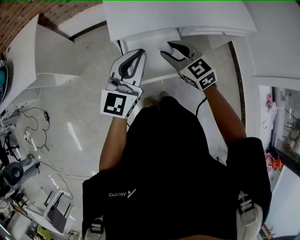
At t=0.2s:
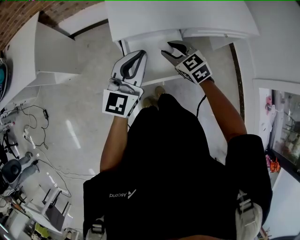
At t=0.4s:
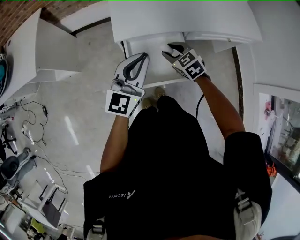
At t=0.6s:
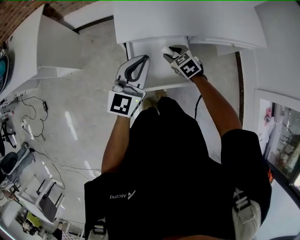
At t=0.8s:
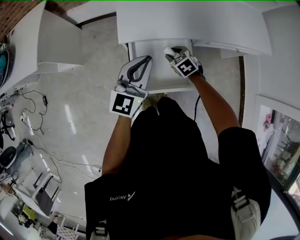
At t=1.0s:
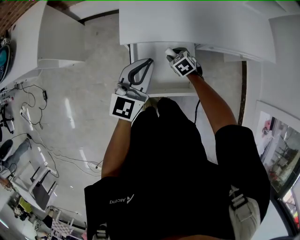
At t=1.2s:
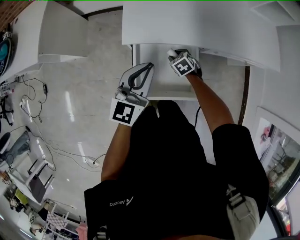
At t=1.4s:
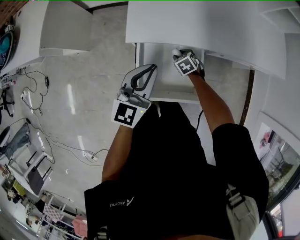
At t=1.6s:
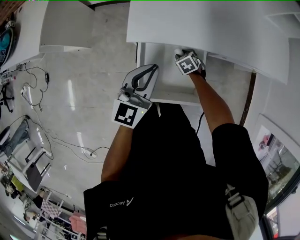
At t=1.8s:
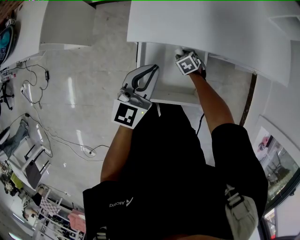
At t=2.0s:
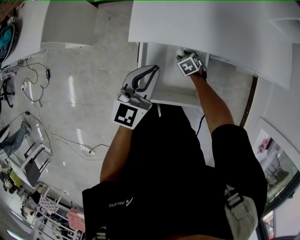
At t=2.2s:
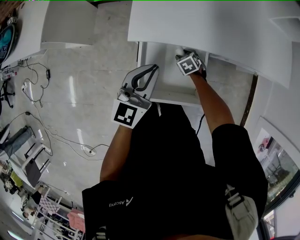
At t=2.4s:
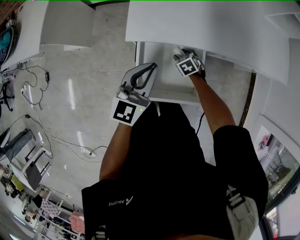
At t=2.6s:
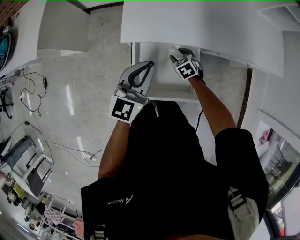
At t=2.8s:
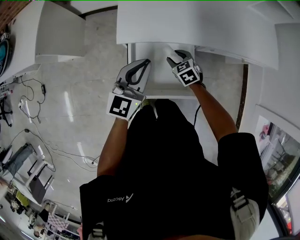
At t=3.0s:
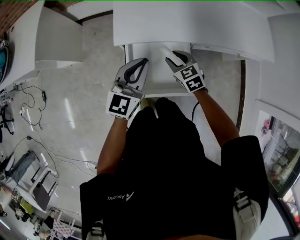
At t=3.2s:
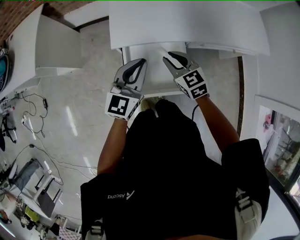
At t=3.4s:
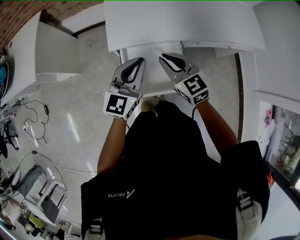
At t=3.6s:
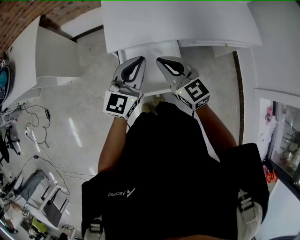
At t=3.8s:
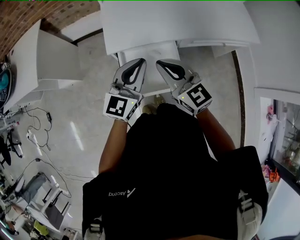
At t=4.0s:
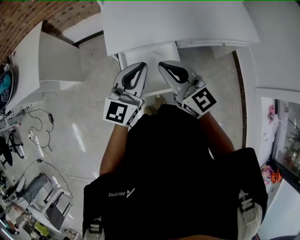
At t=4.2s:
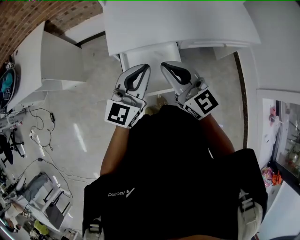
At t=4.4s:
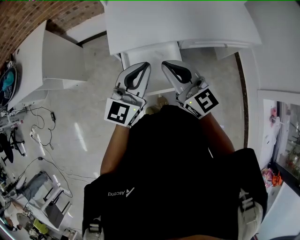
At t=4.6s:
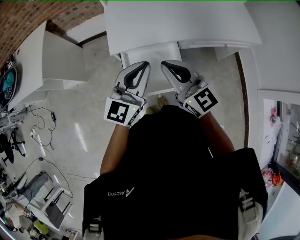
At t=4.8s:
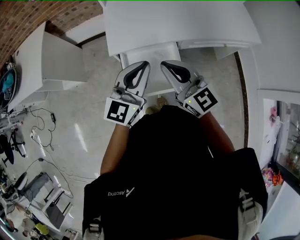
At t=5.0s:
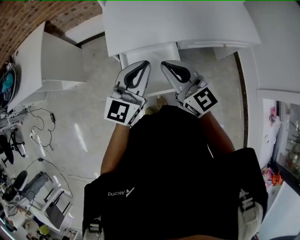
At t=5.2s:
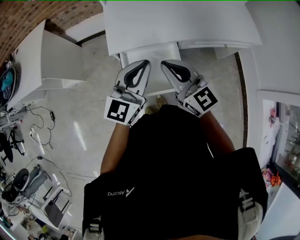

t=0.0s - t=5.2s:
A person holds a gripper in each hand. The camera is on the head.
t=0.0s - t=1.8s: The left gripper moves downward and forward, approximately 15 cm. The right gripper moves downward and forward, roughly 40 cm, and angles its fingers downward, by about 40 degrees.
t=1.8s - t=3.4s: The left gripper moves upward, some 5 cm; the right gripper goes about 35 cm upward, tilts its fingers approximately 50 degrees upward, and closes.
t=3.4s - t=5.2s: The left gripper travels upward and to the right by some 10 cm. The right gripper shifts about 10 cm upward and backward, and turns by roughly 20 degrees.

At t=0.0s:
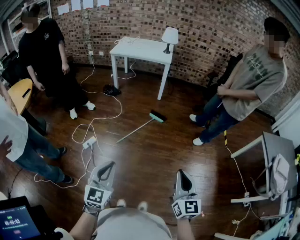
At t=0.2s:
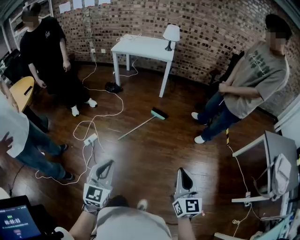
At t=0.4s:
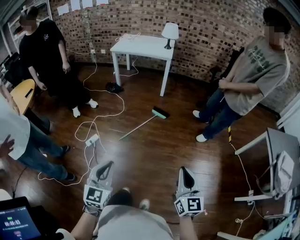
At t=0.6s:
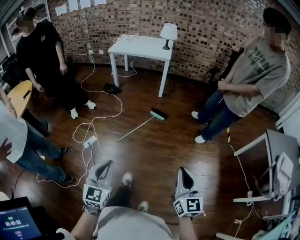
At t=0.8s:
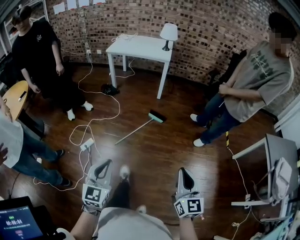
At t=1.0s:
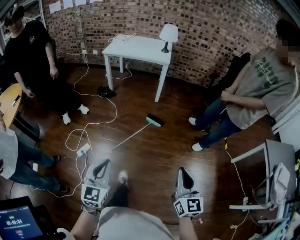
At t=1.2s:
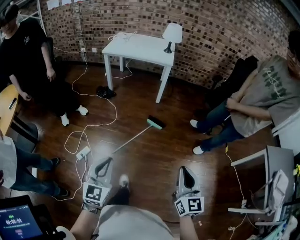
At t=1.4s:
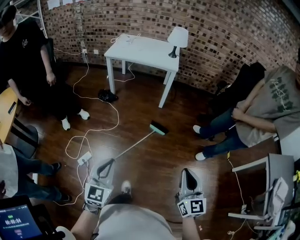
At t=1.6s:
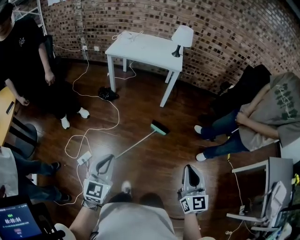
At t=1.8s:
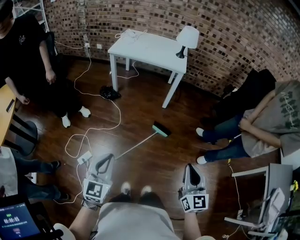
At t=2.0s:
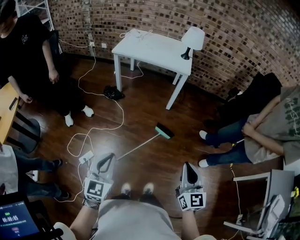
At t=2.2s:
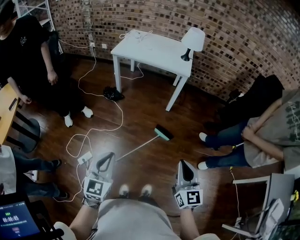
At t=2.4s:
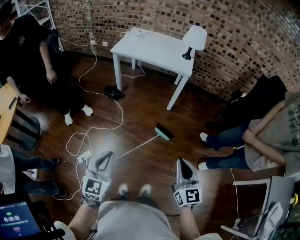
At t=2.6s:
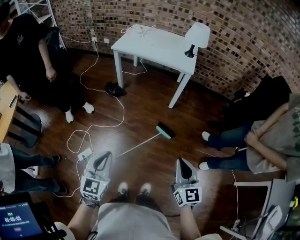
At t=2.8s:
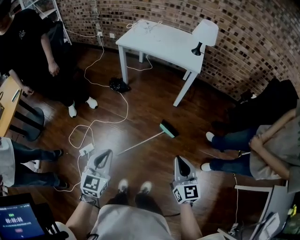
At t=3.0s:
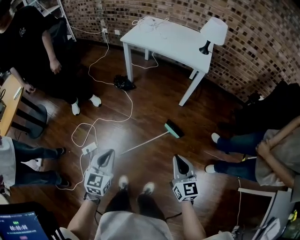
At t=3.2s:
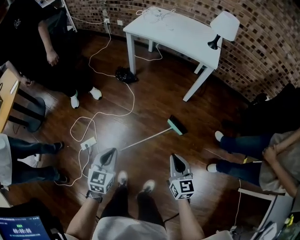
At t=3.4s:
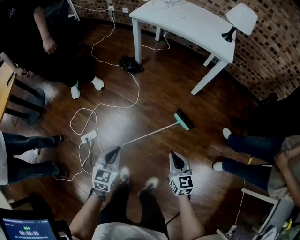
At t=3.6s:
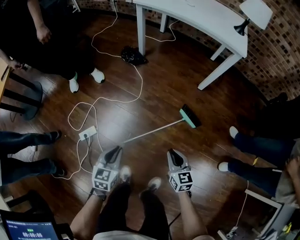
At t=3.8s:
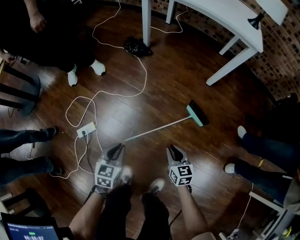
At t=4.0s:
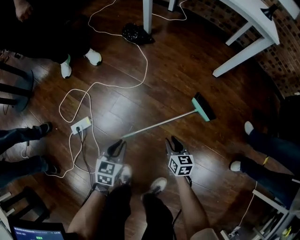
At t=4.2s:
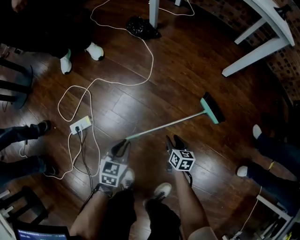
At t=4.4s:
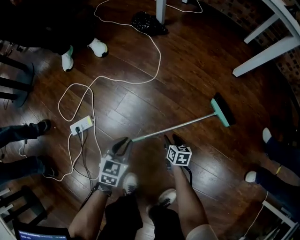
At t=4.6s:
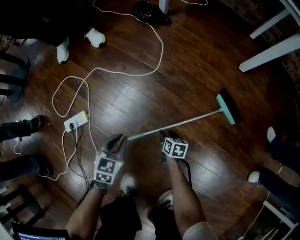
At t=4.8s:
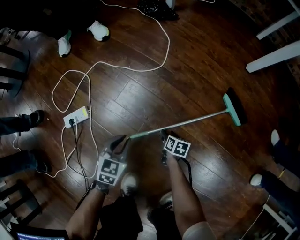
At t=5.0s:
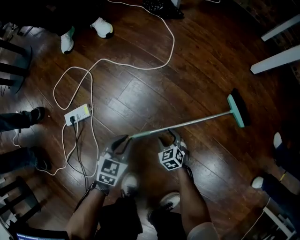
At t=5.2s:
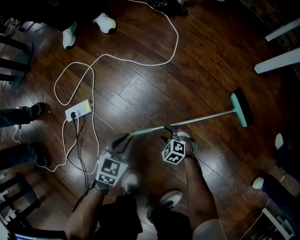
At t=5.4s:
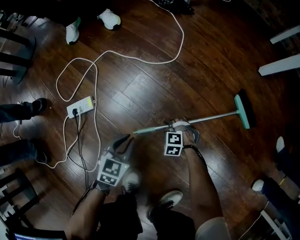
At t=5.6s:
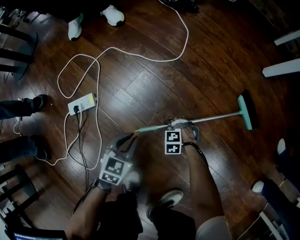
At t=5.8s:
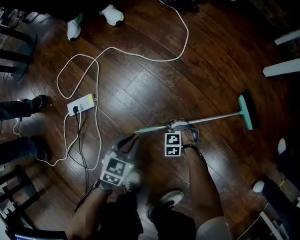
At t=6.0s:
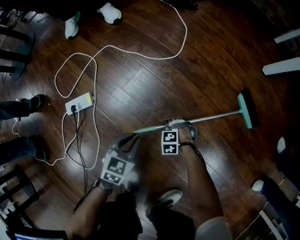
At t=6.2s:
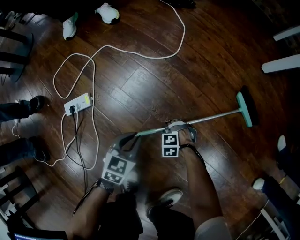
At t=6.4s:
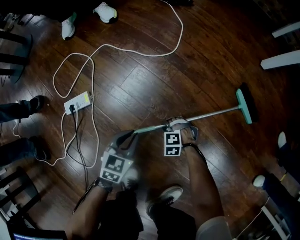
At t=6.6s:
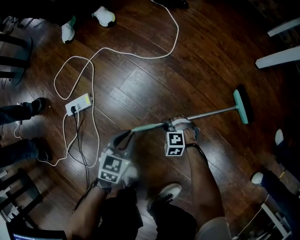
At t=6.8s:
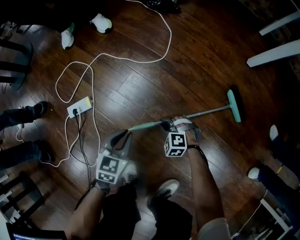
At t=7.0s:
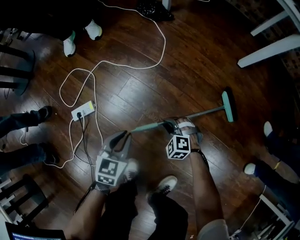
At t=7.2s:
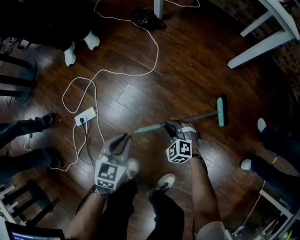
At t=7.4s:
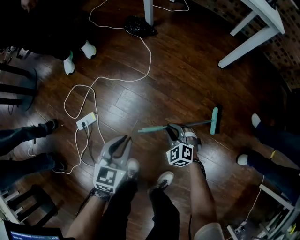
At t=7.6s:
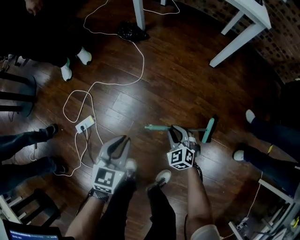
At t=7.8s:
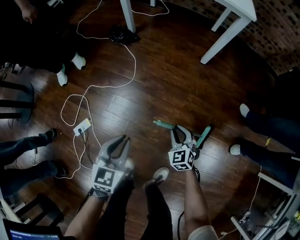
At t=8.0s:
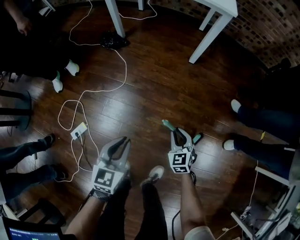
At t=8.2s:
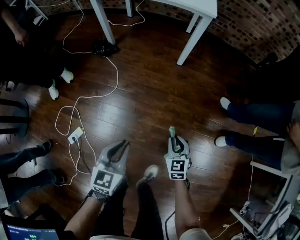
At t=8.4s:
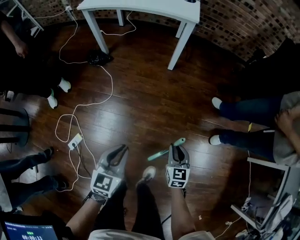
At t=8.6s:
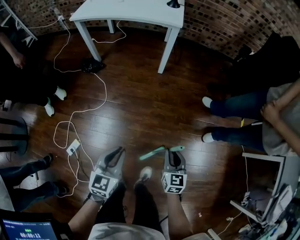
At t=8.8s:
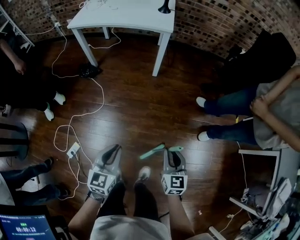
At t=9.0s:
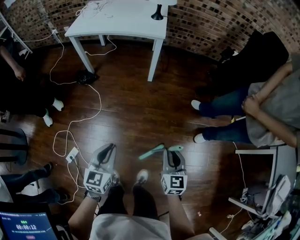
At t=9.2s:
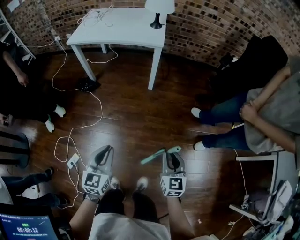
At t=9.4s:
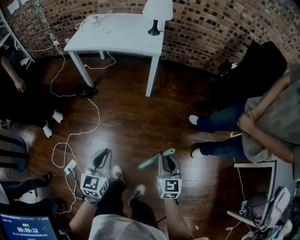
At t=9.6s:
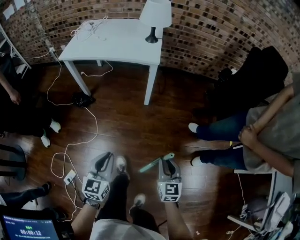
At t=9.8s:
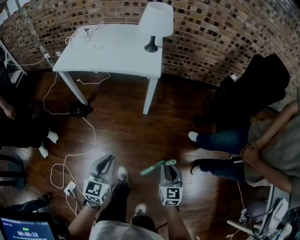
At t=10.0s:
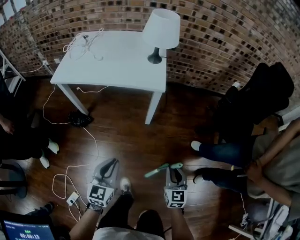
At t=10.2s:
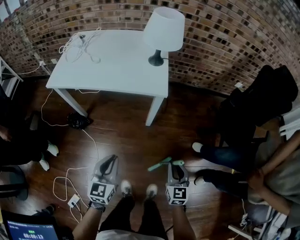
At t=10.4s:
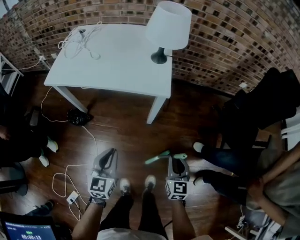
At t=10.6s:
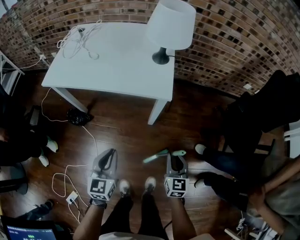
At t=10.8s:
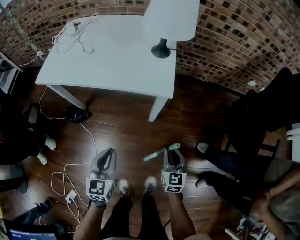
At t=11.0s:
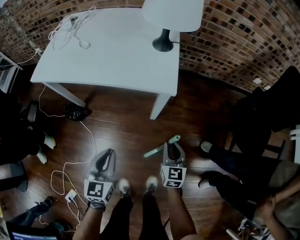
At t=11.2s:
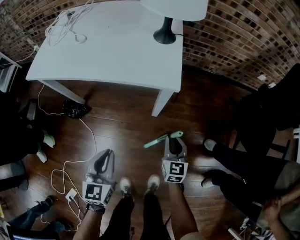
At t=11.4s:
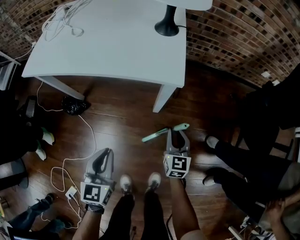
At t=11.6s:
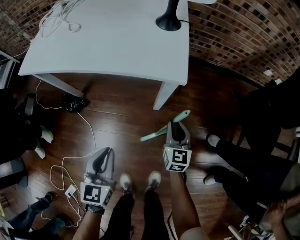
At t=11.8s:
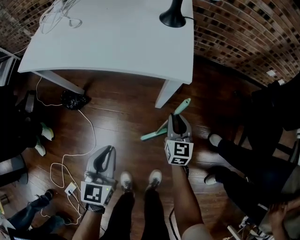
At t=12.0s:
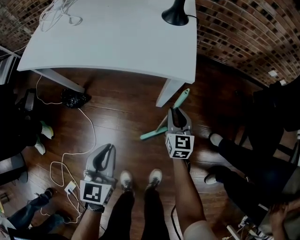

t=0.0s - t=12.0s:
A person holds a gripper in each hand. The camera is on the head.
t=0.0s - t=1.6s: The grippers both shift forward by about 35 cm.
t=1.6s - t=3.0s: Both grippers move forward and downward, some 20 cm. The left gripper changes its angle by roughly 20 degrees. The right gripper swivels about 20 degrees.
t=3.0s - t=4.4s: Both grippers travel together downward, some 70 cm. The left gripper swivels some 20 degrees. The right gripper angles its fingers downward, by about 40 degrees, and opens up.
t=4.4s - t=6.0s: Both grippers move downward, about 15 cm. The right gripper twists approximately 110 degrees counterclockwise, seen from behind.
t=6.0s - t=7.6s: The two grippers go approximately 40 cm upward. The right gripper points its fingers some 40 degrees further upward.
t=7.6s - t=9.0s: The left gripper moves upward, some 25 cm. Meanwhile the right gripper moves upward, about 40 cm, and rotates some 60 degrees.
t=9.0s - t=10.4s: The pair of grippers is taken forward, approximately 40 cm.
t=10.4s - t=12.0s: The left gripper heads downward and forward, covering some 15 cm; the right gripper travels forward and downward by about 30 cm.

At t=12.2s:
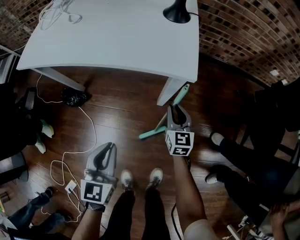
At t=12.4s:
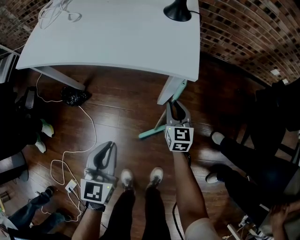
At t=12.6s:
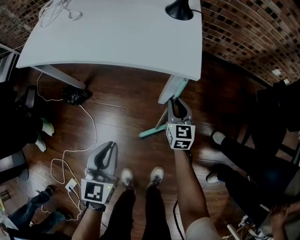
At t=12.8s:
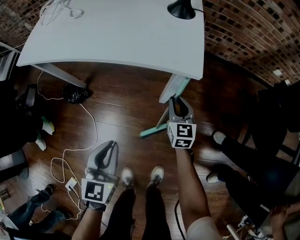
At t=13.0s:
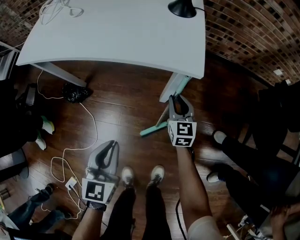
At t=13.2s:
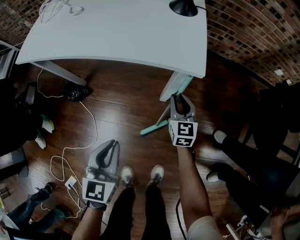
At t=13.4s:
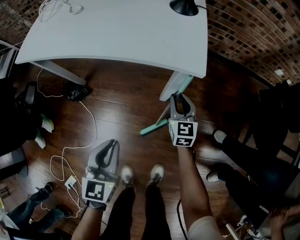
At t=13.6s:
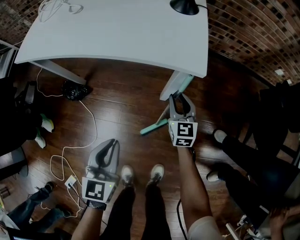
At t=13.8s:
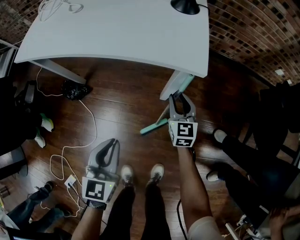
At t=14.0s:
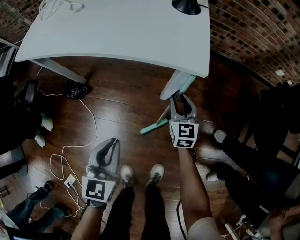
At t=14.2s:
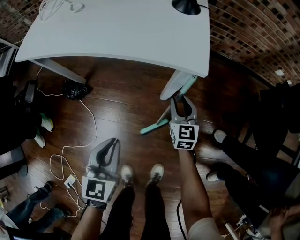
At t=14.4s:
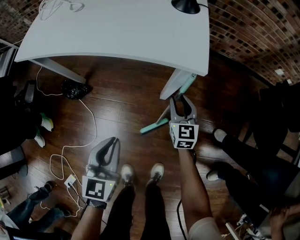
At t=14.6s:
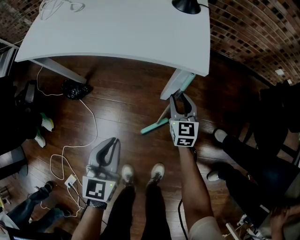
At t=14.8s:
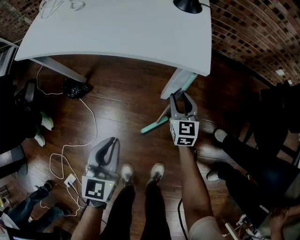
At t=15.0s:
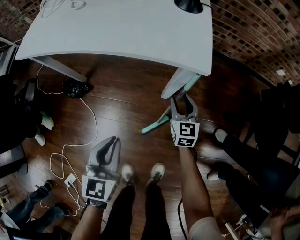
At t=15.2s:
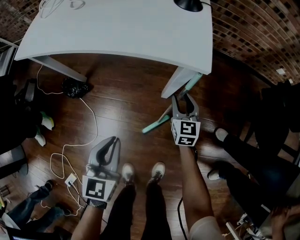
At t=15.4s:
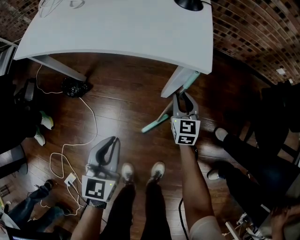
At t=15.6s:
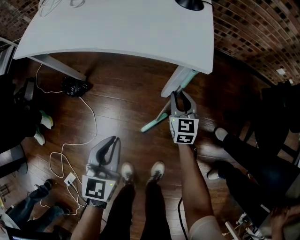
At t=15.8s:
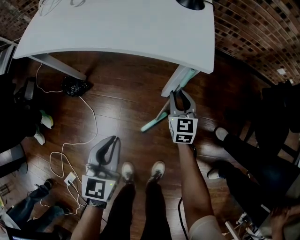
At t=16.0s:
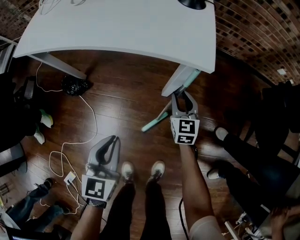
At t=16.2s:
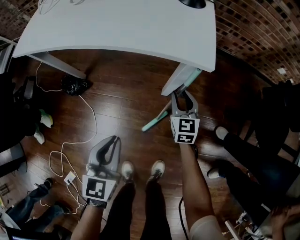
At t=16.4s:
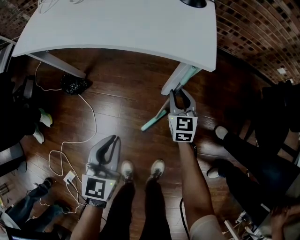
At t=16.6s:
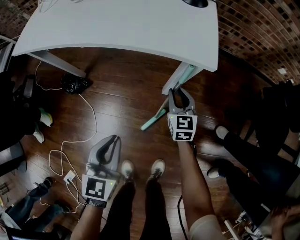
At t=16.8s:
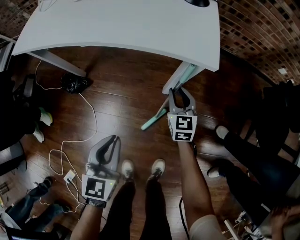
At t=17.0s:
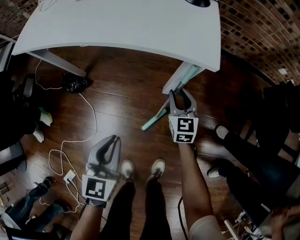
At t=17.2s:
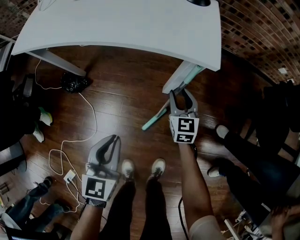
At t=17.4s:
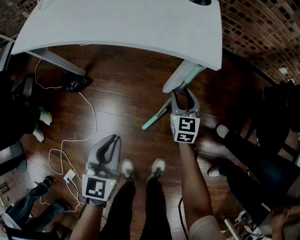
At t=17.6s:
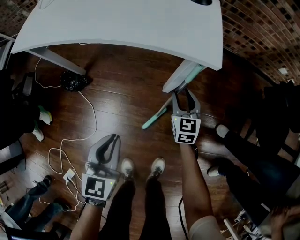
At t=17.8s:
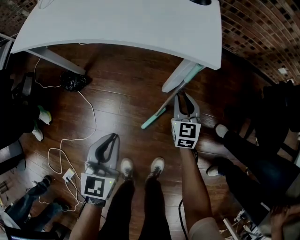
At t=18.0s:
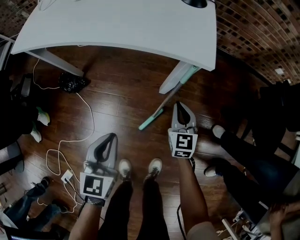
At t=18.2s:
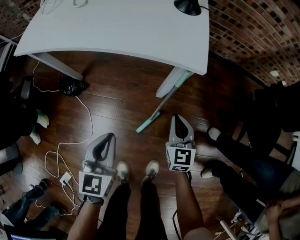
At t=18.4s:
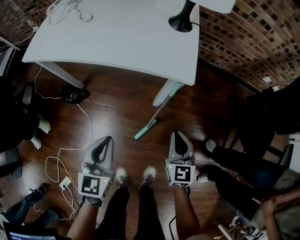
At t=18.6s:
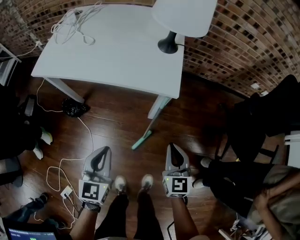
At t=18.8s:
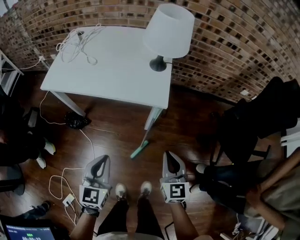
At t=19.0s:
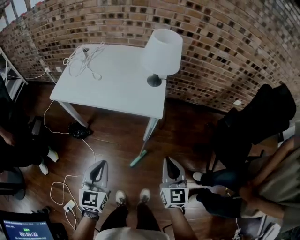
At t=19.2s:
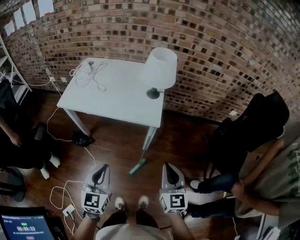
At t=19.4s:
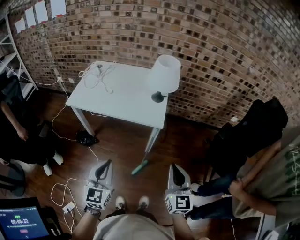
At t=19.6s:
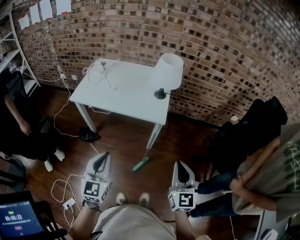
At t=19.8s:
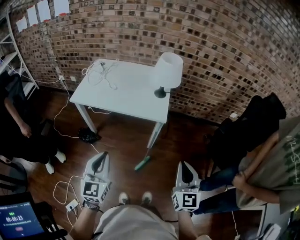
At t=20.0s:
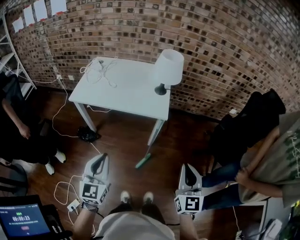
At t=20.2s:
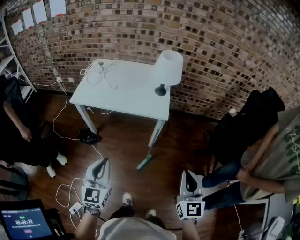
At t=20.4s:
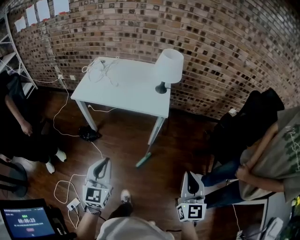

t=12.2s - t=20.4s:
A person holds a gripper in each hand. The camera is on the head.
t=12.2s - t=17.2s: The grippers stay close to where they were, moving slightly.
t=17.2s - t=18.8s: The right gripper goes approximately 35 cm upward and backward, and closes its fingers. The left gripper goes roughly 20 cm upward.
t=18.8s - t=20.4s: The two grippers go roughly 25 cm upward and backward.
